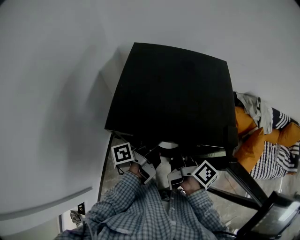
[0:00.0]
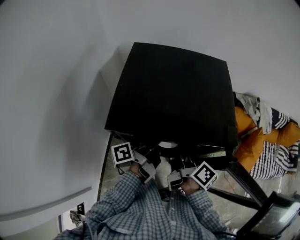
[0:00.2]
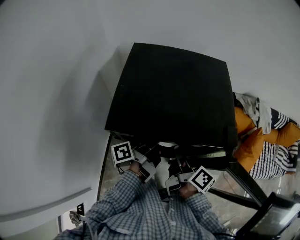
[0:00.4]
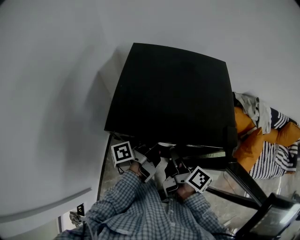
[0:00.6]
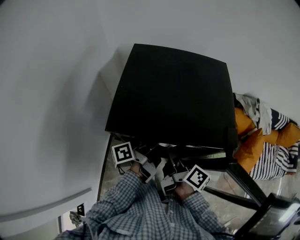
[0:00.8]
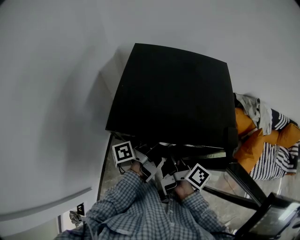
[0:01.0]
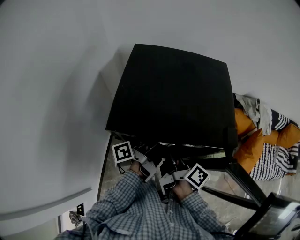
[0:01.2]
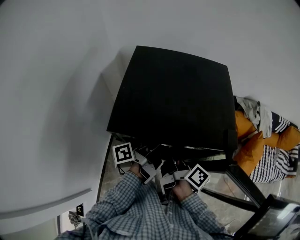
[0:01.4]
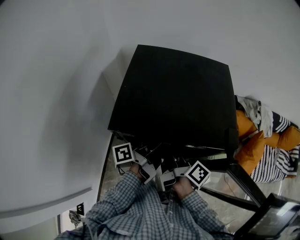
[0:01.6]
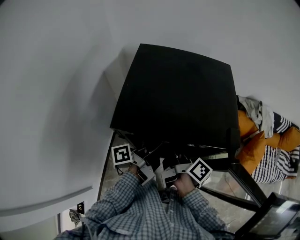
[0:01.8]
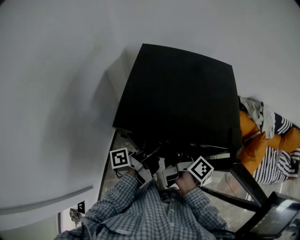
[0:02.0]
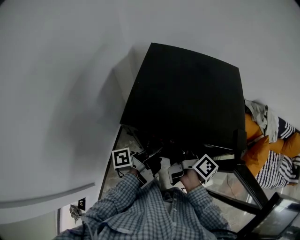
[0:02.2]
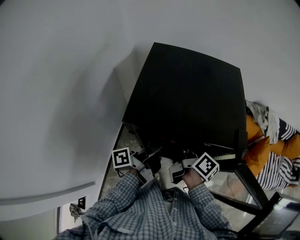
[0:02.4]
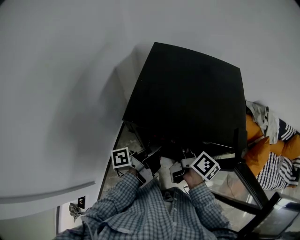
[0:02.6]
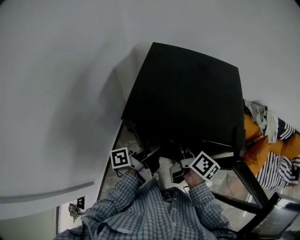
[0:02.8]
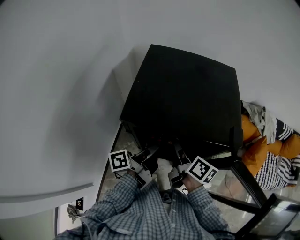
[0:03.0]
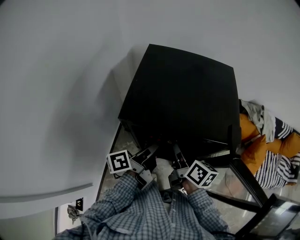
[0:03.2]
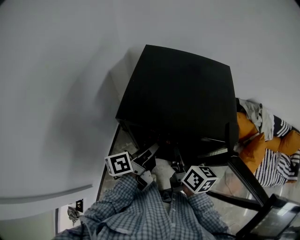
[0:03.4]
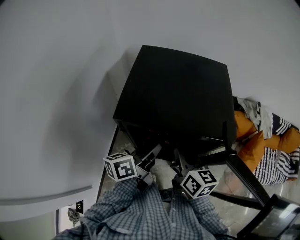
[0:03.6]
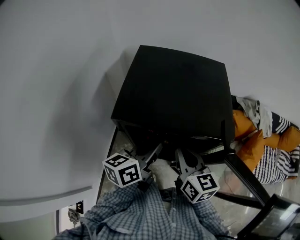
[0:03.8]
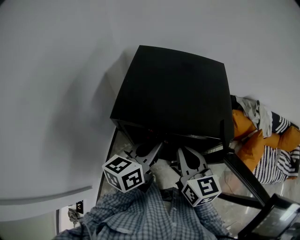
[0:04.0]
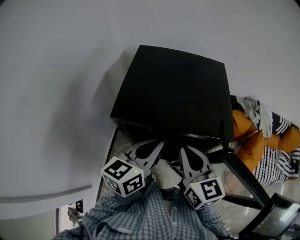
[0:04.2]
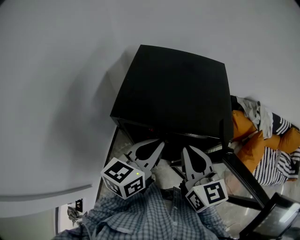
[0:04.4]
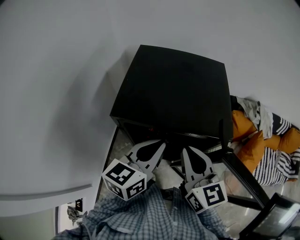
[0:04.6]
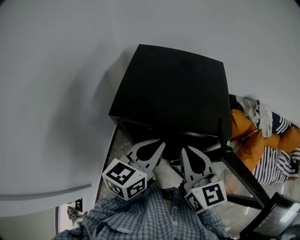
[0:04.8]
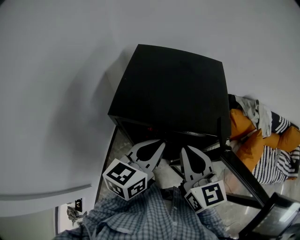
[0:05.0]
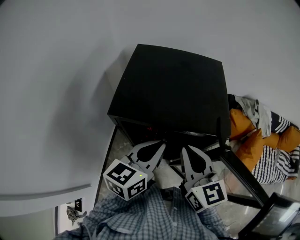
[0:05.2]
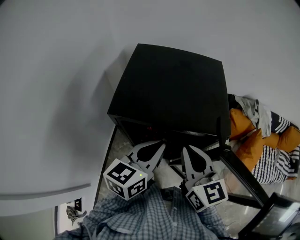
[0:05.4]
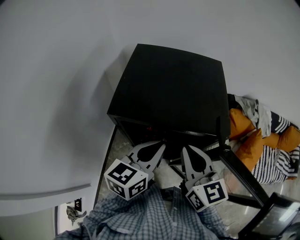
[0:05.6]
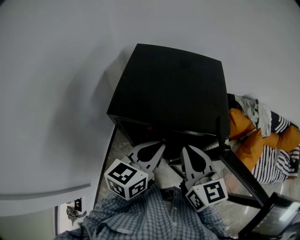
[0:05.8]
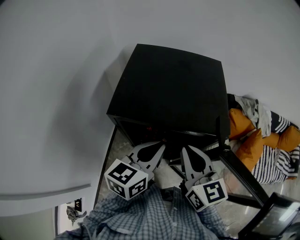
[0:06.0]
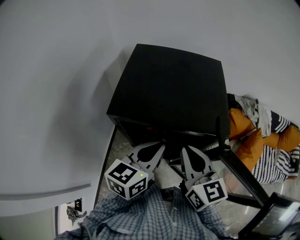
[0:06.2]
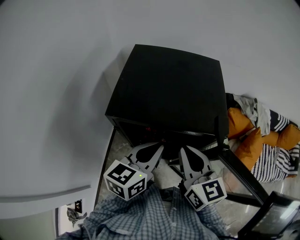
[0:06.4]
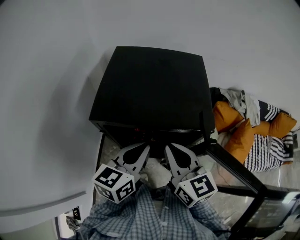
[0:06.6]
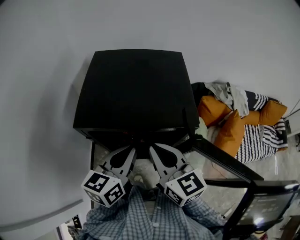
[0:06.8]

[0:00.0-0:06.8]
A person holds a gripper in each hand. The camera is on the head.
1.4 to 2.8 s: The right gripper changes its angle by roughly 20 degrees.
2.8 to 4.0 s: The right gripper is displaced upward by about 10 cm, and rolls counterclockwise, seen from behind, by roughly 50 degrees.
4.0 to 5.4 s: The right gripper changes place by some 5 cm.

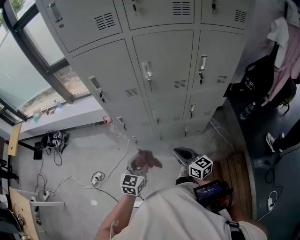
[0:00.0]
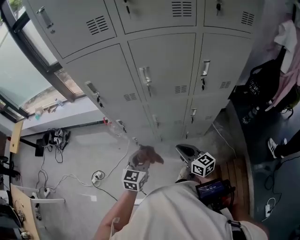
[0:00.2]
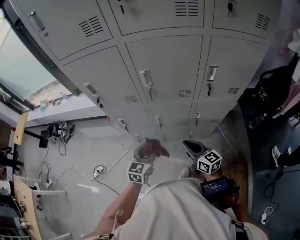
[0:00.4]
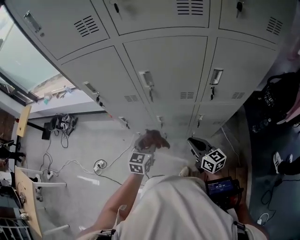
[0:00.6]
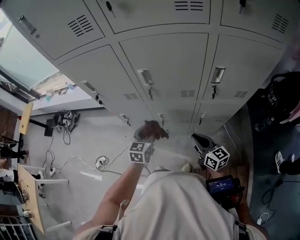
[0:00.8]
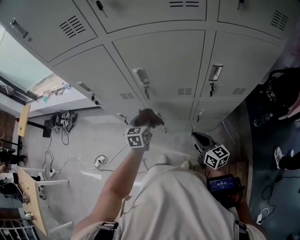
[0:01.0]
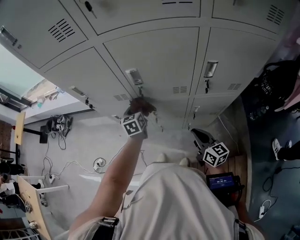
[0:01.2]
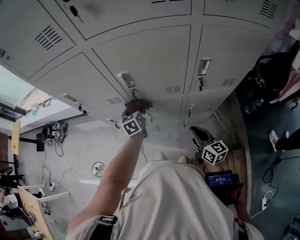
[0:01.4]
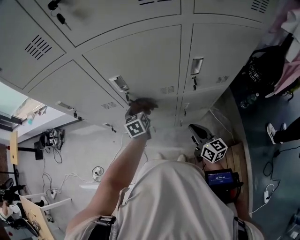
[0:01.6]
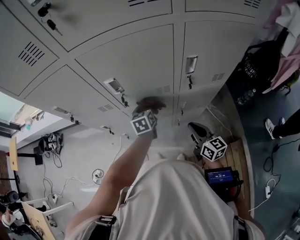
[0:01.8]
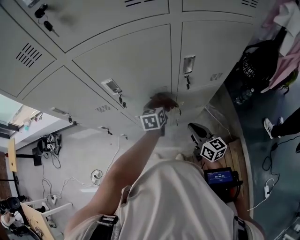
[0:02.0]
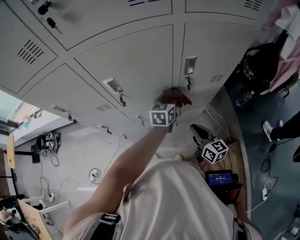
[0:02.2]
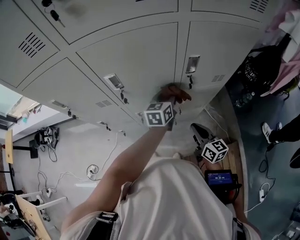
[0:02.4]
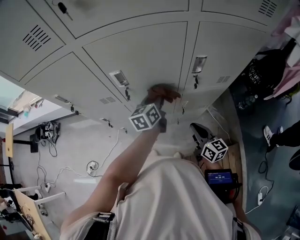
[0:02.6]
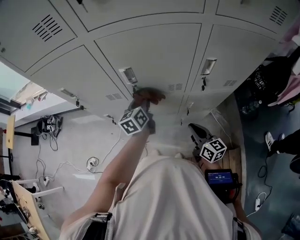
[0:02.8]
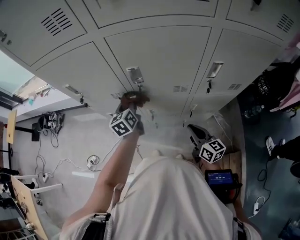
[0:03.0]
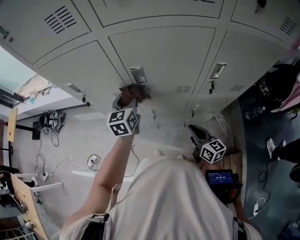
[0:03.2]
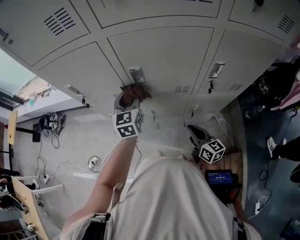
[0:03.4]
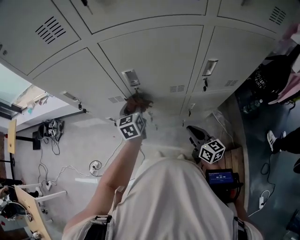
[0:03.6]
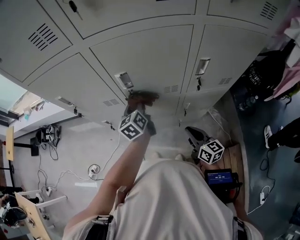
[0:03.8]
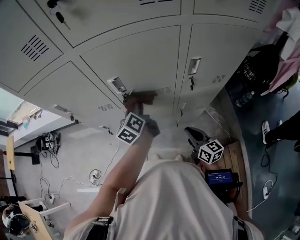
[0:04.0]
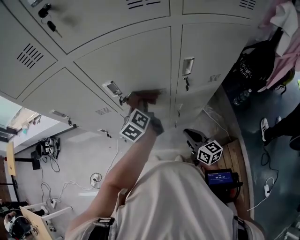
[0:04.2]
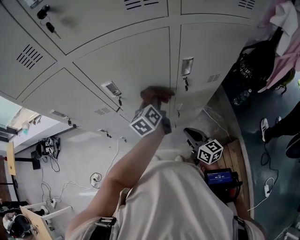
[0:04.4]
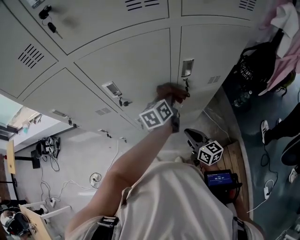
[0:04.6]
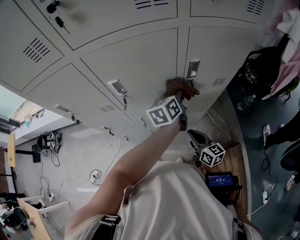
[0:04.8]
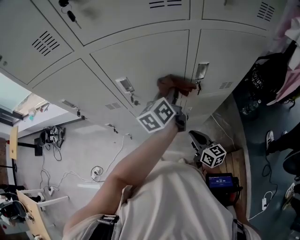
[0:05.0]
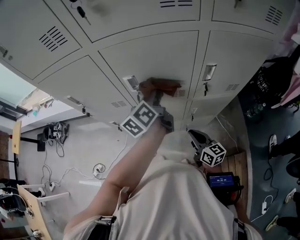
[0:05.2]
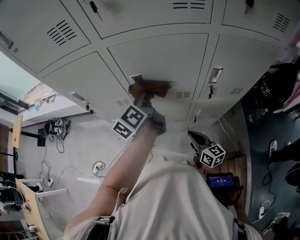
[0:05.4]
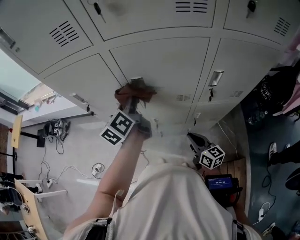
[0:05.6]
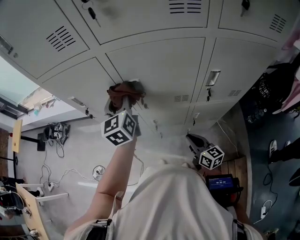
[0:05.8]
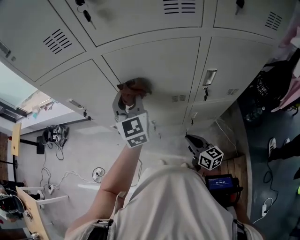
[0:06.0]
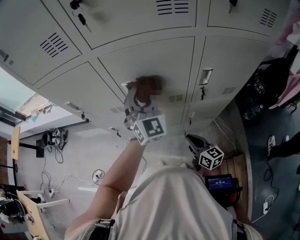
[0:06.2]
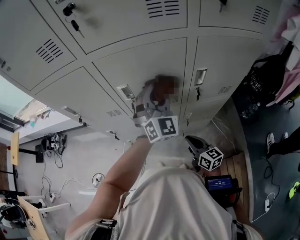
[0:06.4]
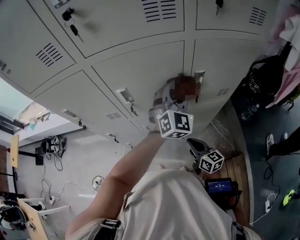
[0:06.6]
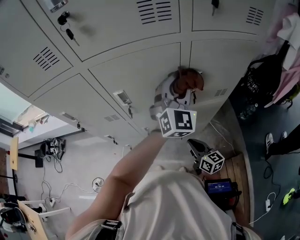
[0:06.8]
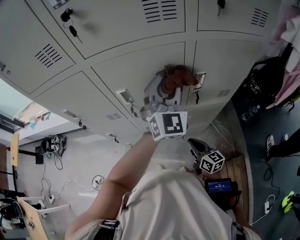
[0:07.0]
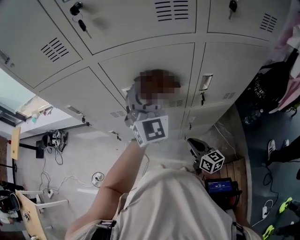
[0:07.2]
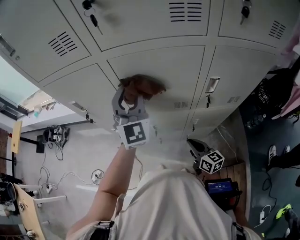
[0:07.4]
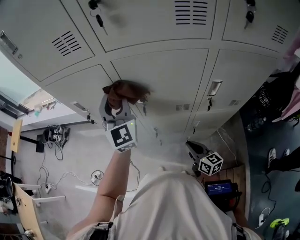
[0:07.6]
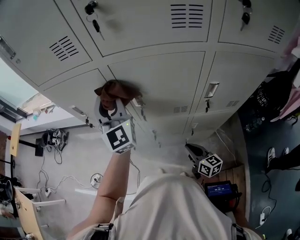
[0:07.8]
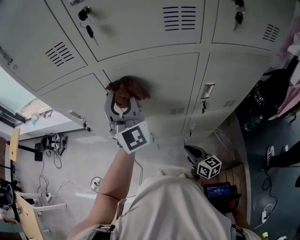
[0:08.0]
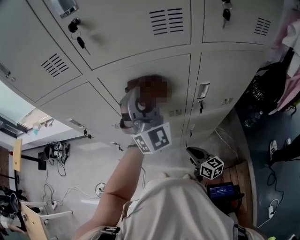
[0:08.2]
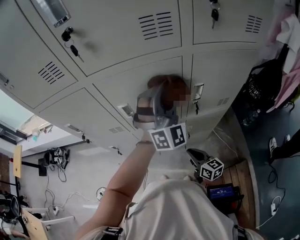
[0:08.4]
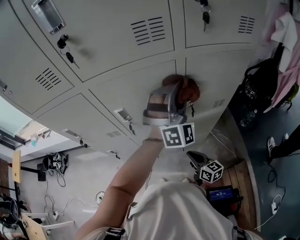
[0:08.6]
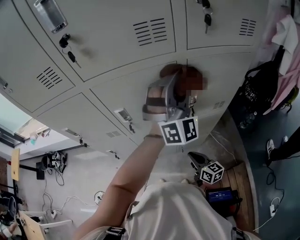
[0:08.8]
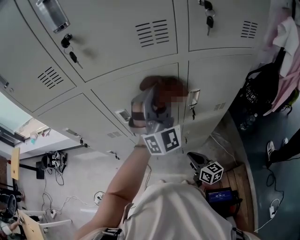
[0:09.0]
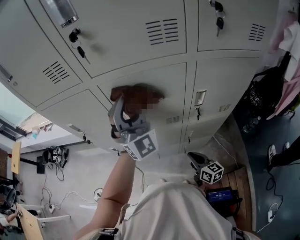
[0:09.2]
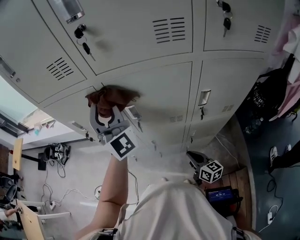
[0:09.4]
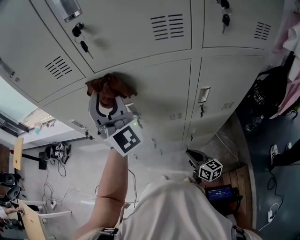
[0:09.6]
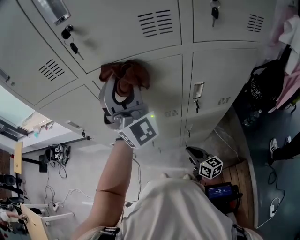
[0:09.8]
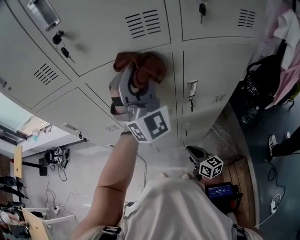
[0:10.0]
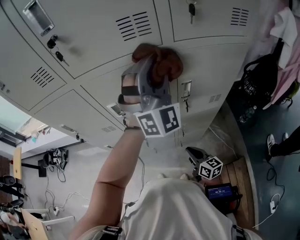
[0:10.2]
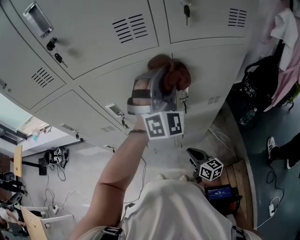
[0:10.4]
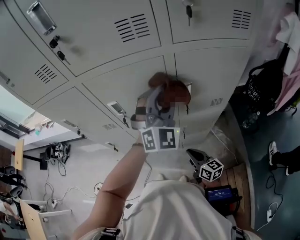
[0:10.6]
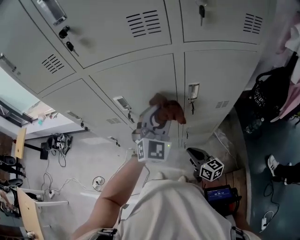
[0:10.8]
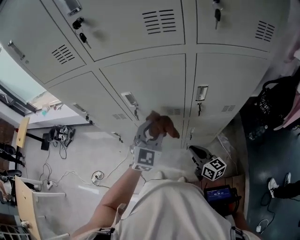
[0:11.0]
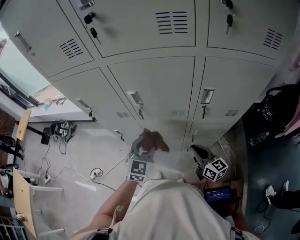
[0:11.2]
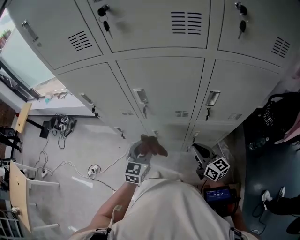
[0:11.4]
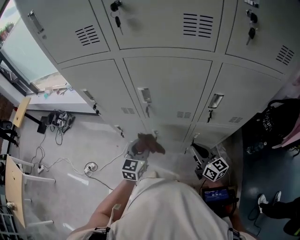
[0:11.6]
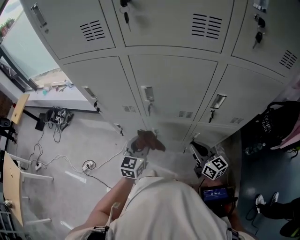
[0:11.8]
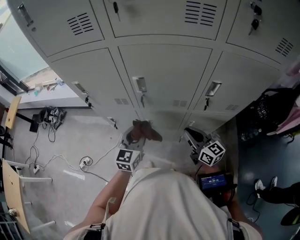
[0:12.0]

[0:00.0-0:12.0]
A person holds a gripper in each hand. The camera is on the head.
0.0 to 1.6 s: The right gripper goes approximately 25 cm to the right and forward, while the left gripper heads forward and to the right, covering approximately 35 cm, and turns by approximately 30 degrees.
1.6 to 3.0 s: The left gripper shifts about 5 cm upward, and reaches roughly 20 cm to the right, then returns.
3.0 to 4.4 s: The left gripper moves to the right, approximately 20 cm, and changes its angle by some 20 degrees.
4.4 to 6.0 s: The left gripper goes left and right, some 30 cm each way, reversing 2 times, and twists some 50 degrees clockwise, seen from behind; the right gripper moves to the left, roughly 5 cm.
6.0 to 7.6 s: The left gripper goes to the right and returns, some 25 cm each way.
7.6 to 9.0 s: The left gripper travels to the right by roughly 25 cm, and changes its angle by about 40 degrees. The right gripper moves roughly 5 cm.
9.0 to 10.4 s: The left gripper reaches about 20 cm to the left, then returns.
10.4 to 12.0 s: The right gripper goes approximately 15 cm forward, upward and to the left, and rotates about 20 degrees, while the left gripper moves to the left and downward, some 40 cm, and rolls counterclockwise, seen from behind, by approximately 70 degrees.

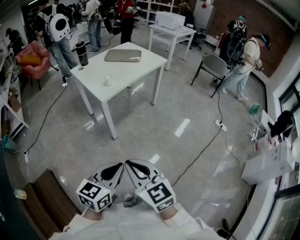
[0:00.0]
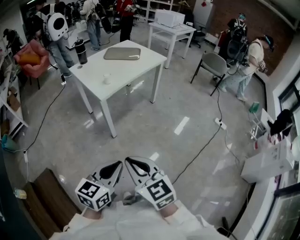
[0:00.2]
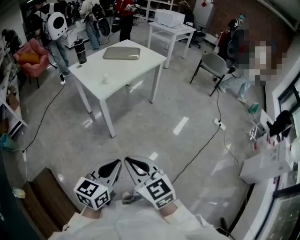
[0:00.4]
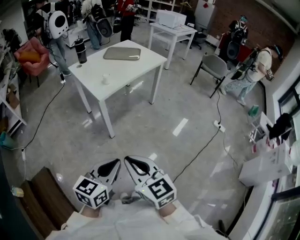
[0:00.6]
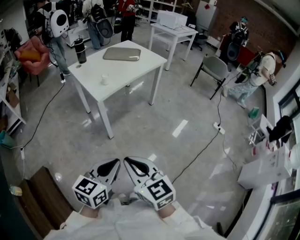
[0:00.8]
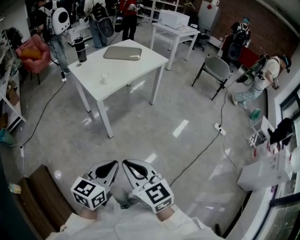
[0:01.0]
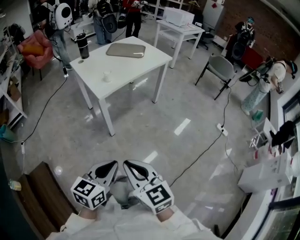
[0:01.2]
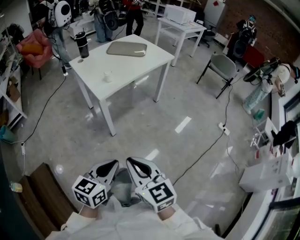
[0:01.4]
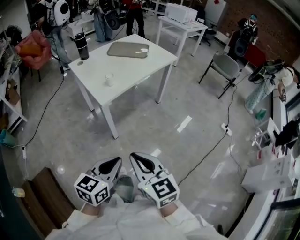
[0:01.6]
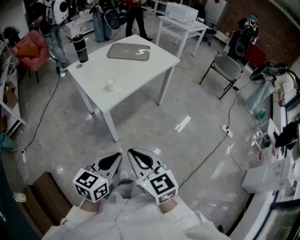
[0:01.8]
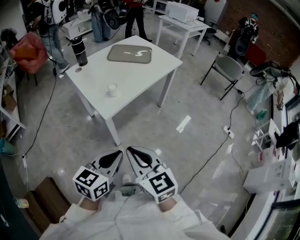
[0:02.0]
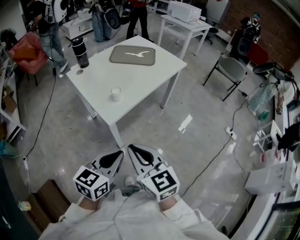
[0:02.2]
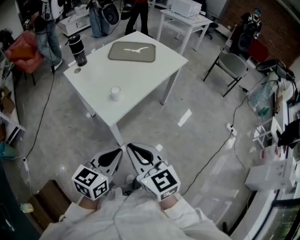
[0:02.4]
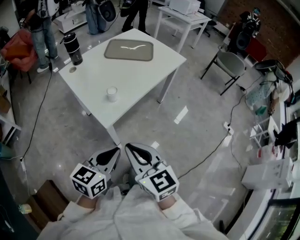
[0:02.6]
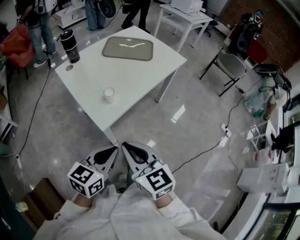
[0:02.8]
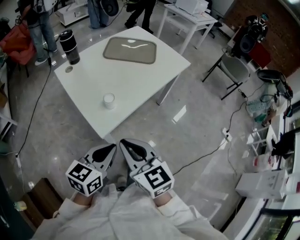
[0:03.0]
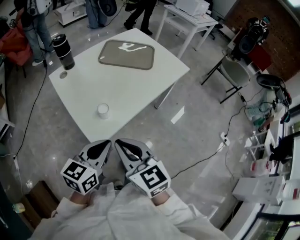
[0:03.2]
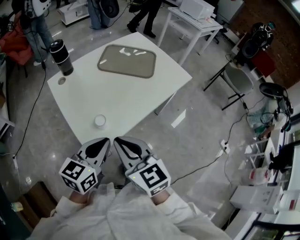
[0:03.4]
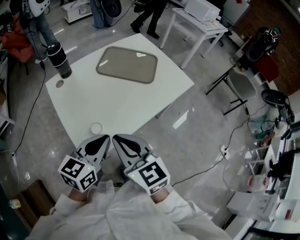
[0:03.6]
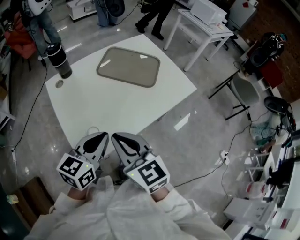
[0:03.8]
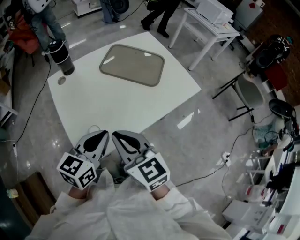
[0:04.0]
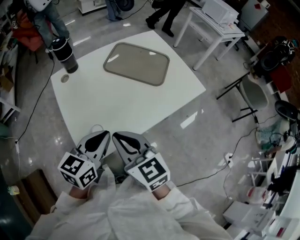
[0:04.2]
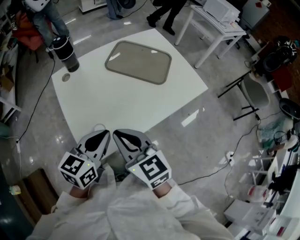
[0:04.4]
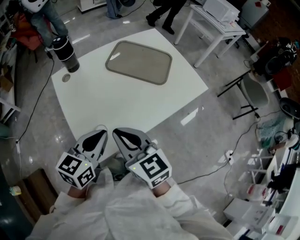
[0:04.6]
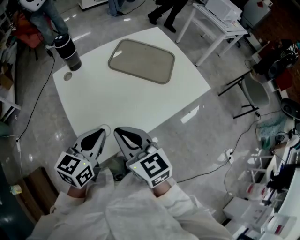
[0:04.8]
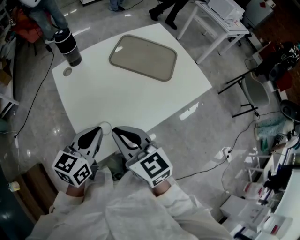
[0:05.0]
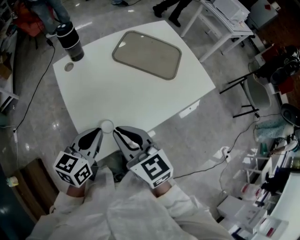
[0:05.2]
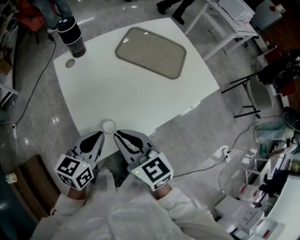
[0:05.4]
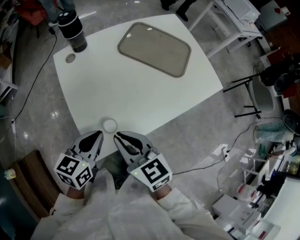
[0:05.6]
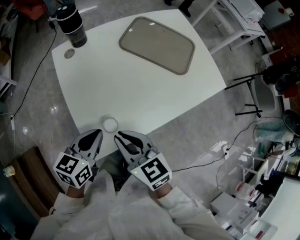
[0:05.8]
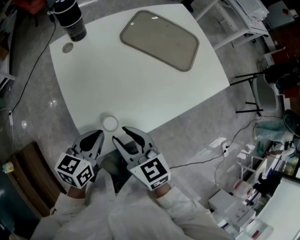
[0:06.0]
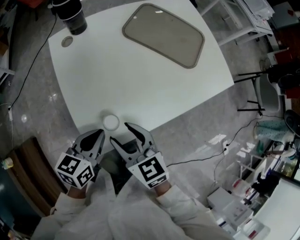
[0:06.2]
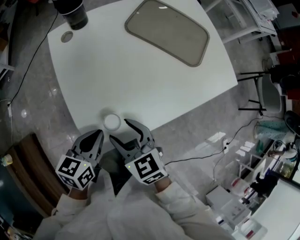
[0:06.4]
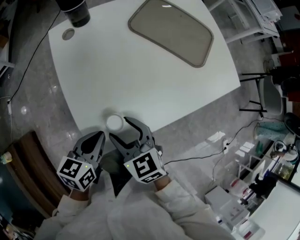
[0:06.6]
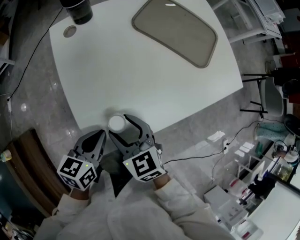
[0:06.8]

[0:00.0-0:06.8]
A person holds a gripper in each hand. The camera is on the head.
0.0 to 1.4 s: Both grippers travel together forward, approximately 10 cm.
1.4 to 2.8 s: Both grippers travel together forward, about 30 cm.
2.8 to 4.0 s: The grippers both shift forward by approximately 25 cm.
4.0 to 5.4 s: The right gripper travels to the left by about 5 cm. Meanwhile the left gripper travels to the left and downward by some 10 cm.
5.4 to 6.8 s: Both grippers travel together downward, approximately 10 cm. The right gripper turns by about 20 degrees, and opens its fingers.
